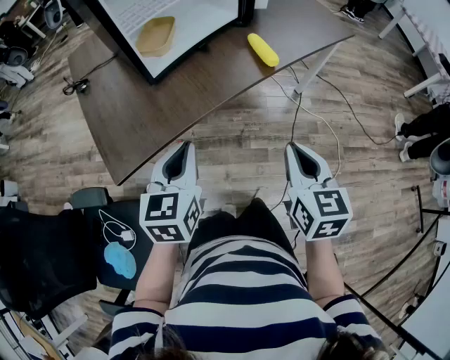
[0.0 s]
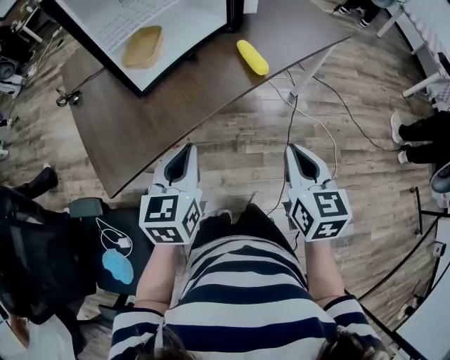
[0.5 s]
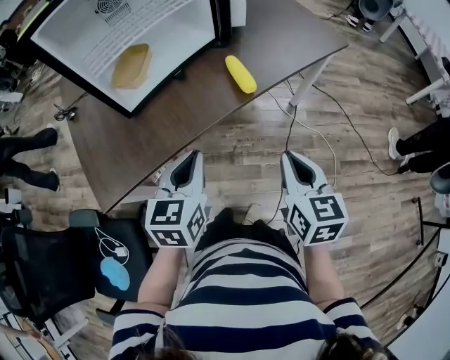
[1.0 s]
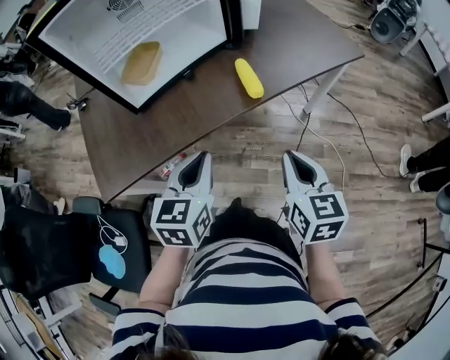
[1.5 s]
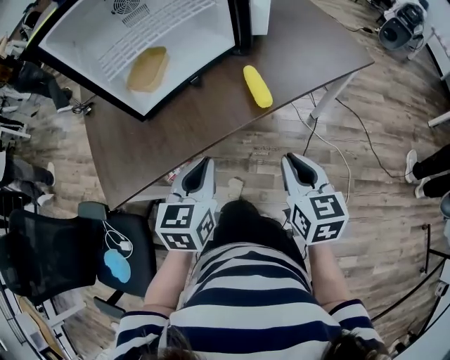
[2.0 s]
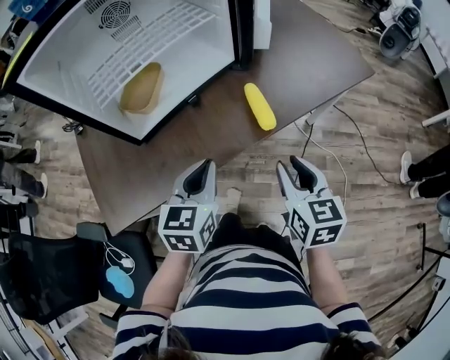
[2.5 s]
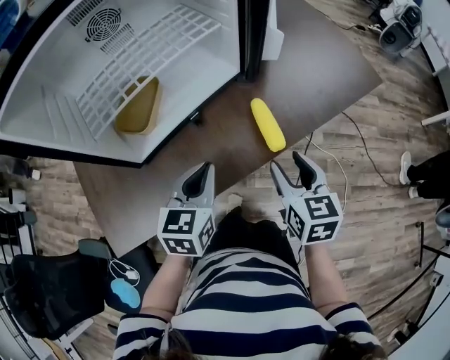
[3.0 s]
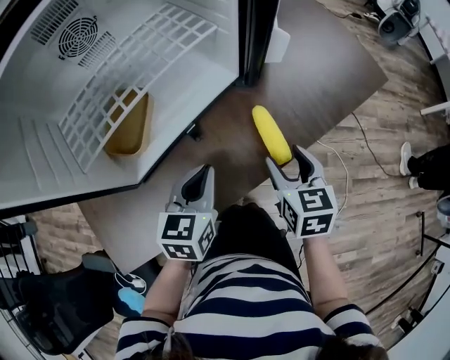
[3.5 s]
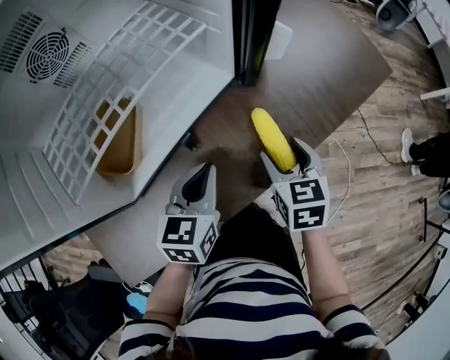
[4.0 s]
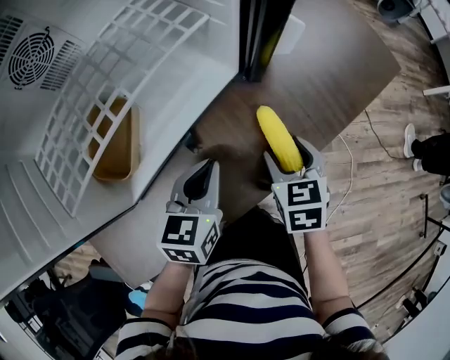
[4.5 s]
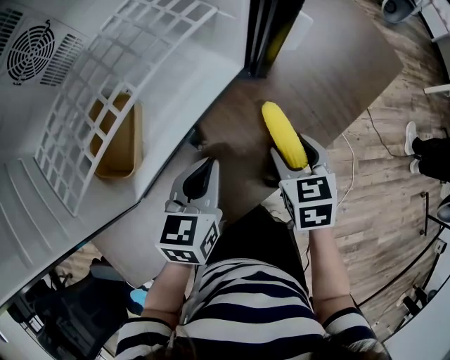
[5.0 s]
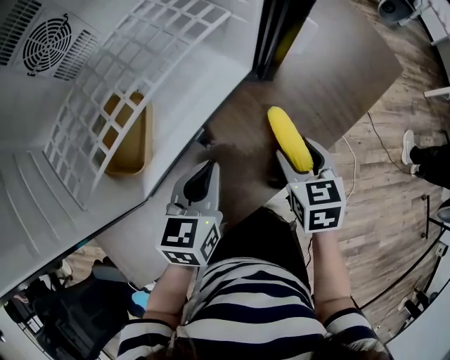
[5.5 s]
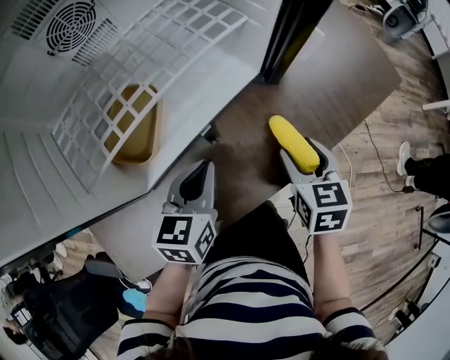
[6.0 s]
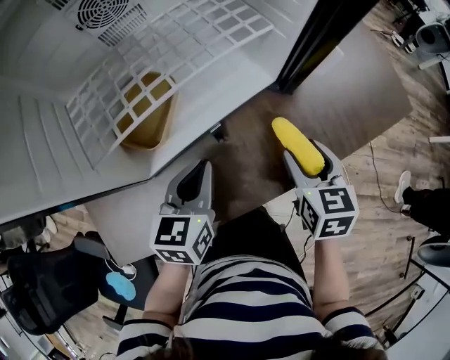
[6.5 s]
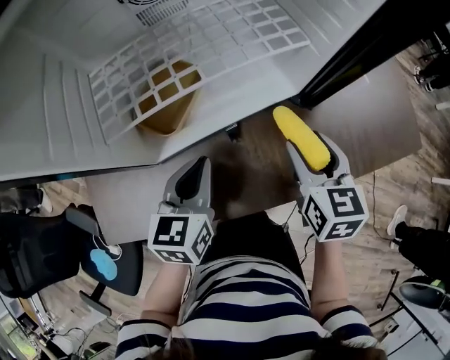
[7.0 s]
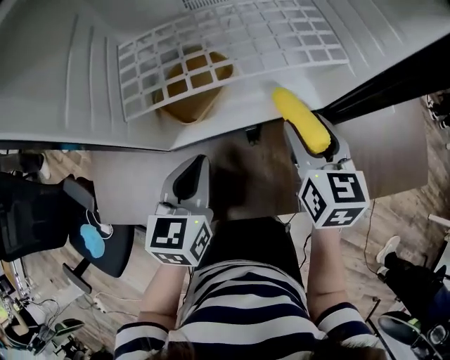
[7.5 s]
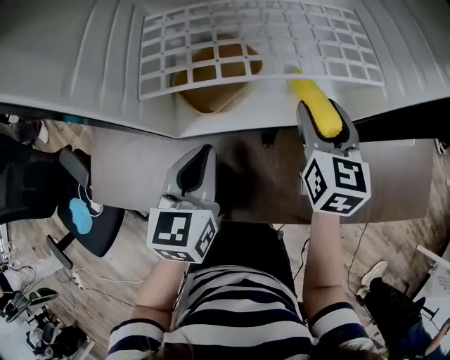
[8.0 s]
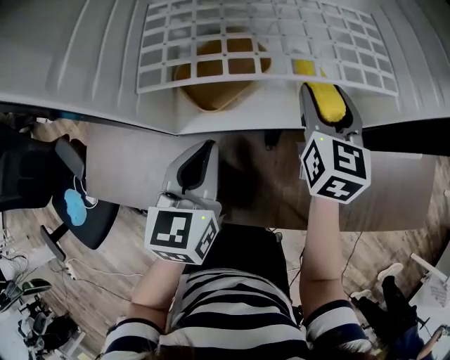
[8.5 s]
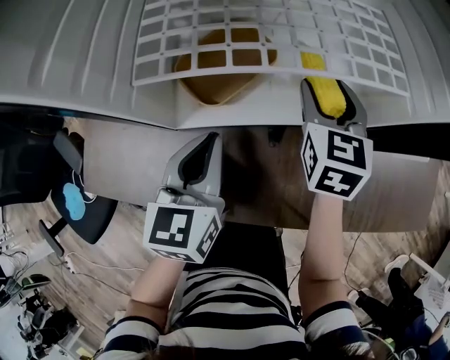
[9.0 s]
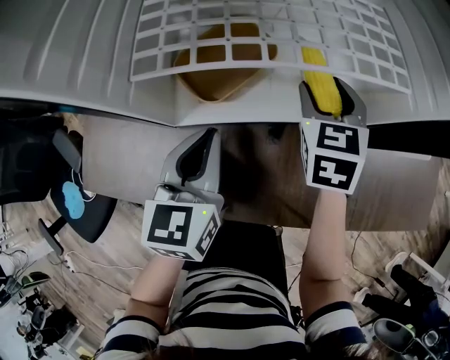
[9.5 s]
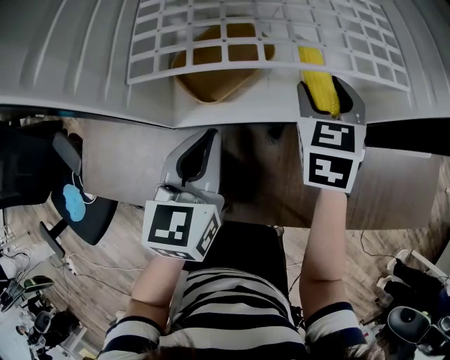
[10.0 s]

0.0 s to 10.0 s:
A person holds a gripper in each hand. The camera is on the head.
0.0 to 2.0 s: The left gripper heads to the right and forward, covering approximately 15 cm. The right gripper heads forward and to the right, covering approximately 15 cm.
2.0 to 4.0 s: Both grippers move forward, approximately 25 cm. The right gripper opens its fingers.
4.0 to 6.0 s: The left gripper changes place by roughly 5 cm.
6.0 to 8.0 s: The left gripper moves about 10 cm, and swivels roughly 40 degrees. The right gripper moves some 20 cm, and rotates roughly 30 degrees.
8.0 to 10.0 s: The right gripper shifts by some 5 cm, and turns by some 20 degrees.

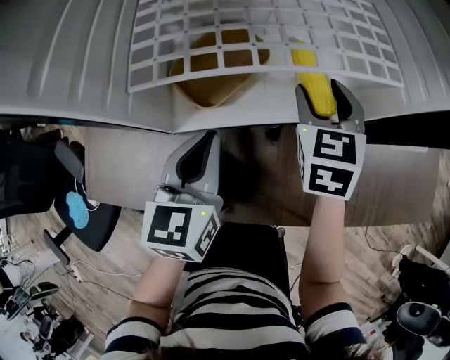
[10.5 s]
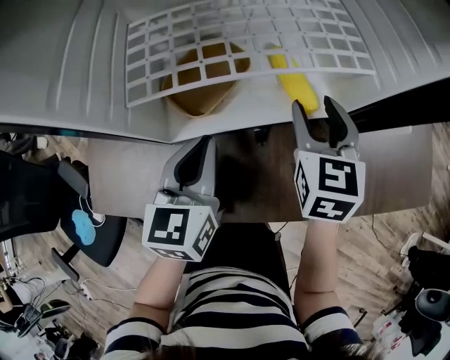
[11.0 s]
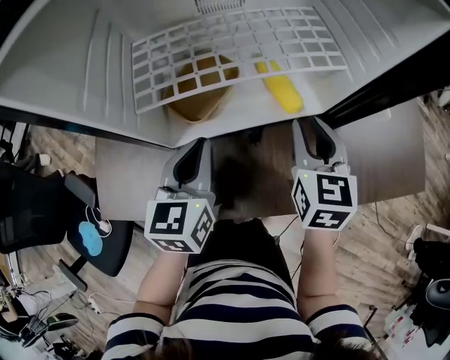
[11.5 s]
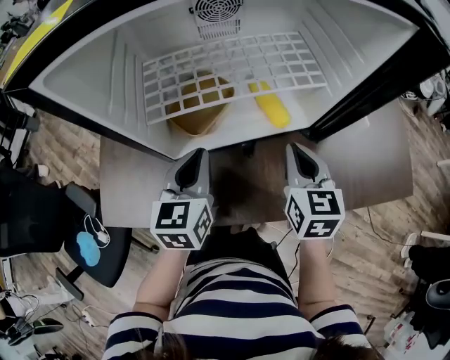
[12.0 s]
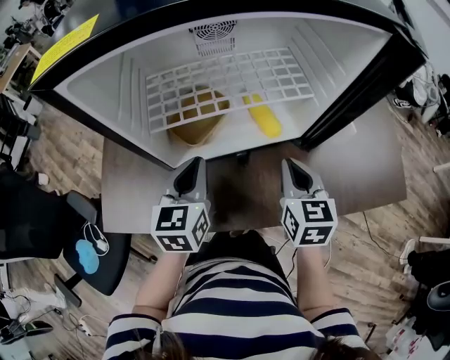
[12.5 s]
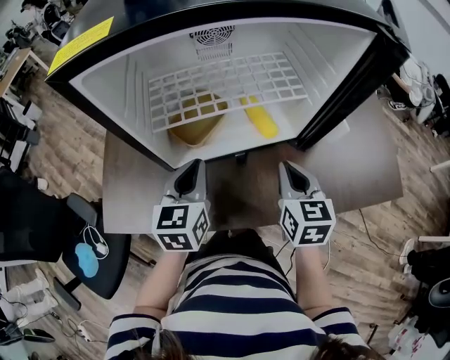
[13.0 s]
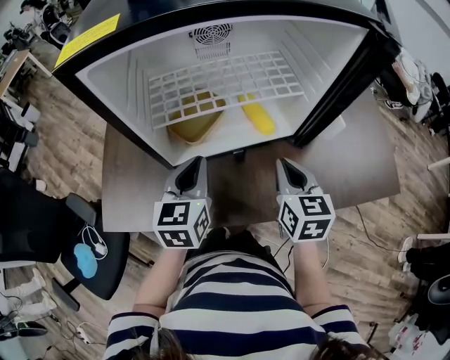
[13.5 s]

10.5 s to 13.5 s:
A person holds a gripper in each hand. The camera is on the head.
10.5 to 12.0 s: The right gripper is displaced backward and upward by about 15 cm, swivels about 20 degrees, and closes. Meanwhile the left gripper is displaced upward by some 5 cm.
12.0 to 13.5 s: The grippers move only a little.

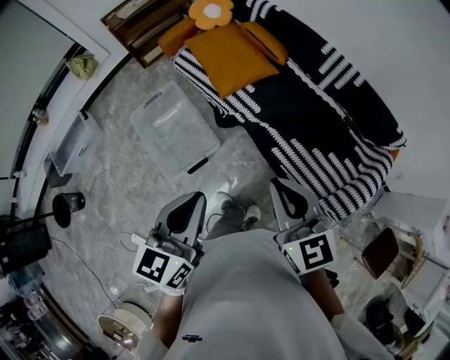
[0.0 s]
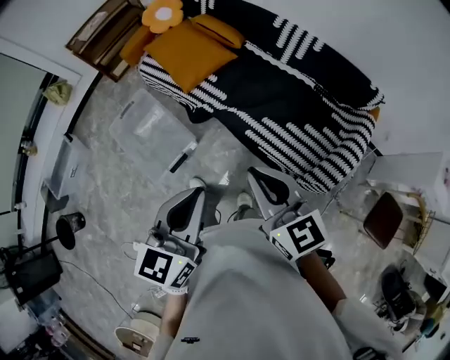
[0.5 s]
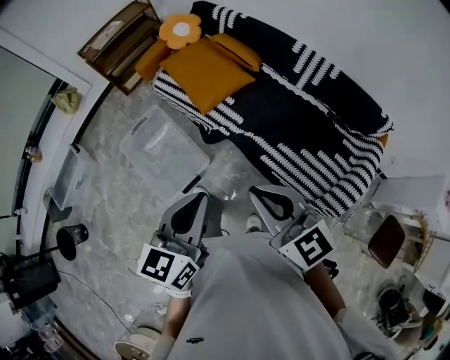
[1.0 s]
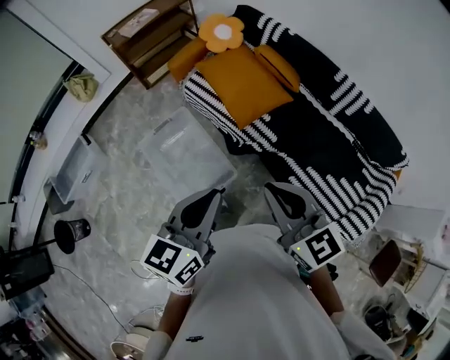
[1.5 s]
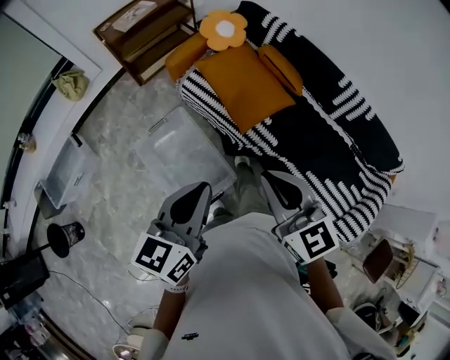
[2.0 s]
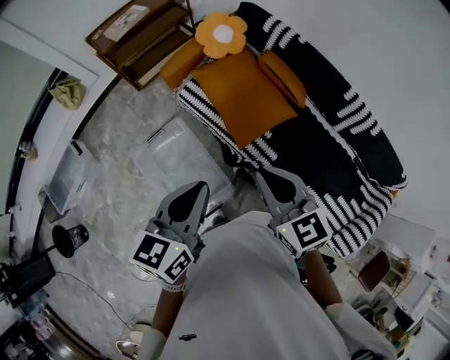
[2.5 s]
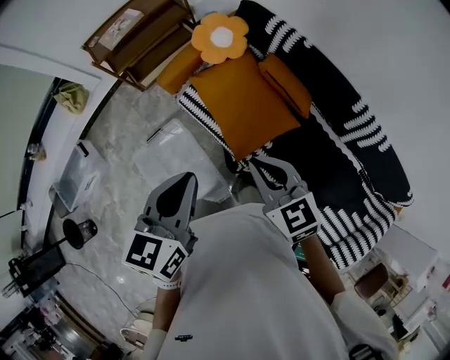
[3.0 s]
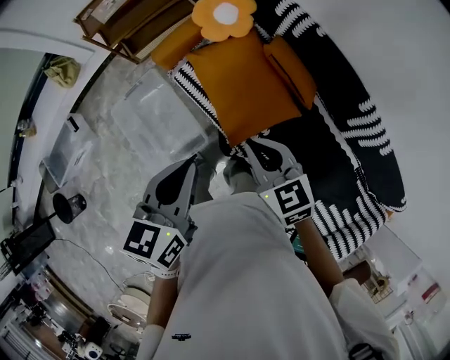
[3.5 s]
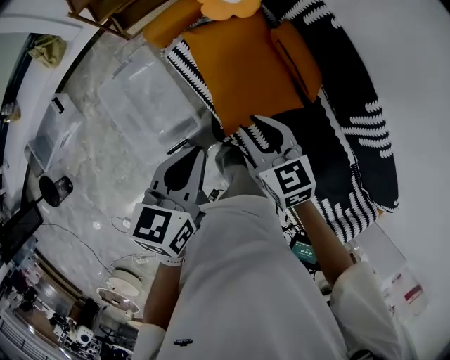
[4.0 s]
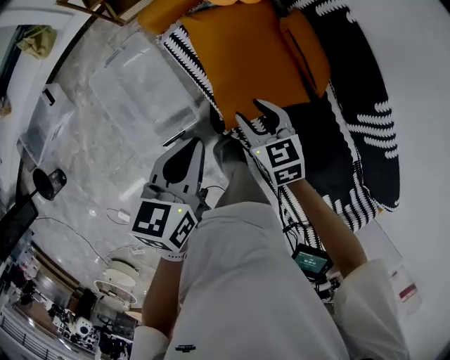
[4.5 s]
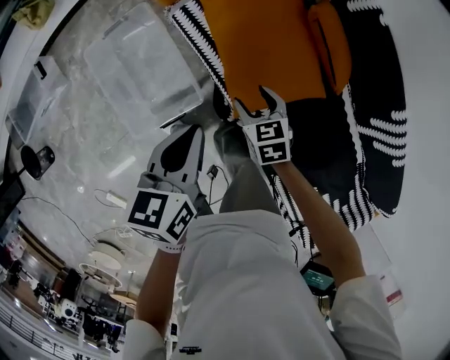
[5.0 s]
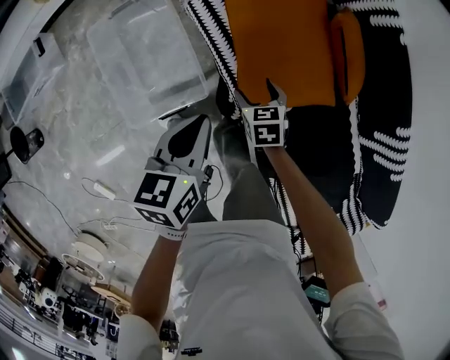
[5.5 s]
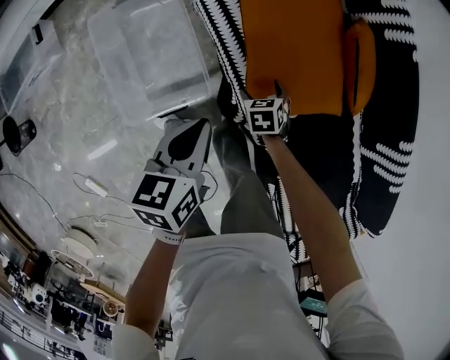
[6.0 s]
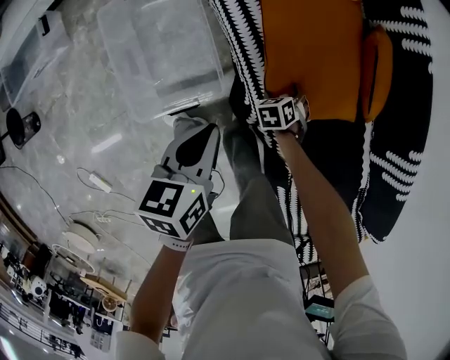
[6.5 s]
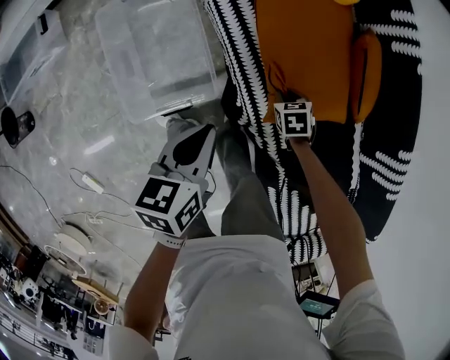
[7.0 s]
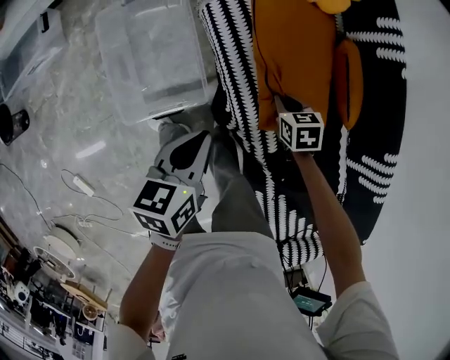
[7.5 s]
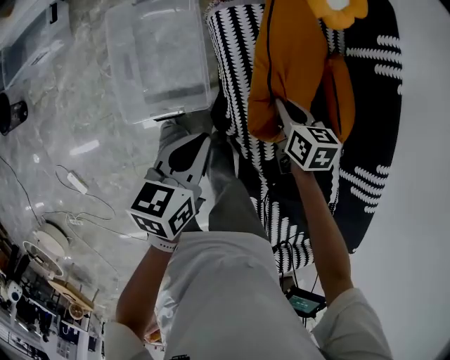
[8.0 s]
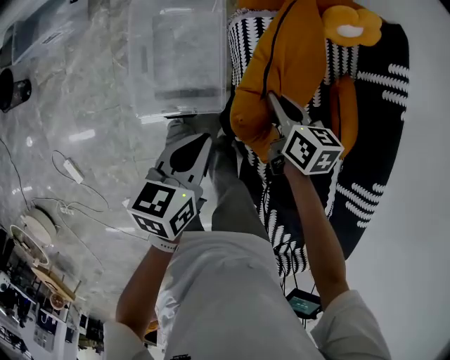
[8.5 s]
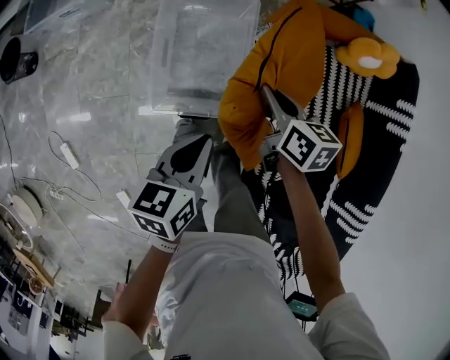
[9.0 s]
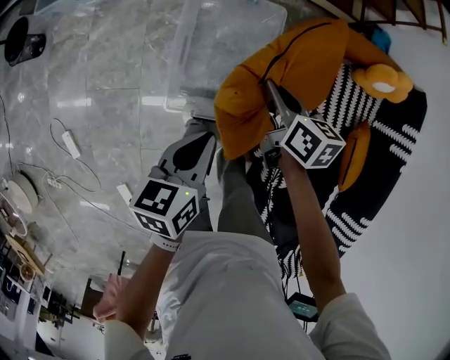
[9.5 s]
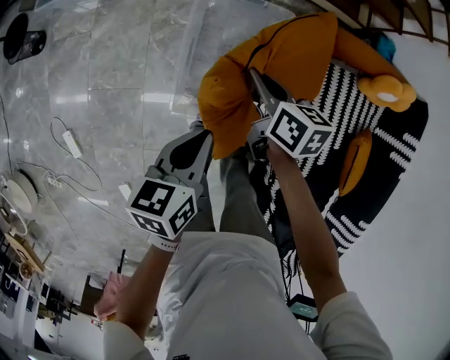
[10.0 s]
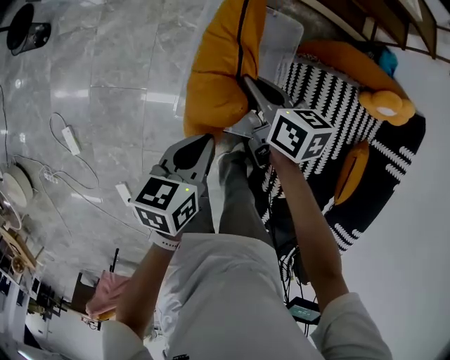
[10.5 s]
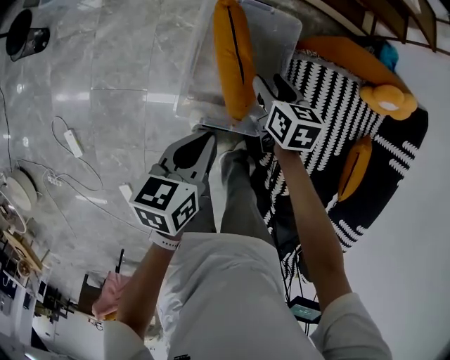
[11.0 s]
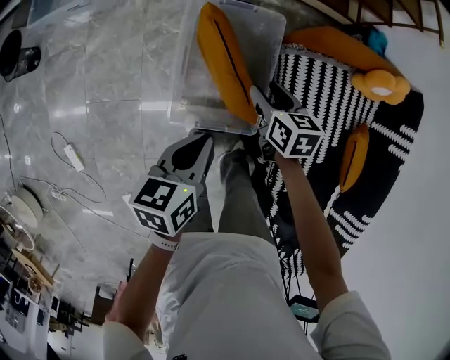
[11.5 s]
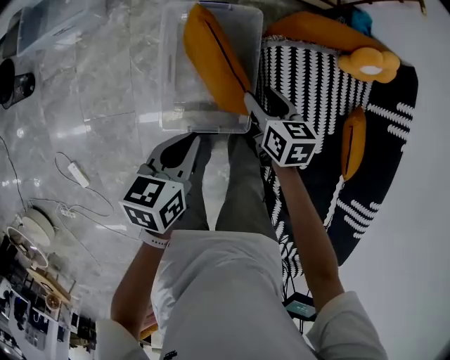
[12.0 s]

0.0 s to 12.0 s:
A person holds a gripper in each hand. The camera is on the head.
0.0 to 2.0 s: Both grippers move forward and to the left, some 30 cm.
2.0 to 4.0 s: The left gripper is displaced forward, downward and to the right by about 35 cm, and turns by approximately 20 degrees; the right gripper is displaced forward and downward by some 40 cm, and changes its angle by about 20 degrees.
4.0 to 6.0 s: The left gripper heads downward and to the left, covering about 25 cm, and turns by approximately 20 degrees. The right gripper travels downward by some 40 cm, tilts its fingers about 40 degrees downward, and opens up.
6.0 to 8.0 s: The left gripper moves some 5 cm, while the right gripper travels upward by approximately 20 cm, swivels about 20 degrees, and closes up.
8.0 to 10.0 s: The two grippers go approximately 35 cm to the left. The right gripper turns by some 20 degrees. Meanwhile the left gripper rotates approximately 20 degrees.
10.0 to 12.0 s: The right gripper heads to the right, covering roughly 10 cm, and opens.

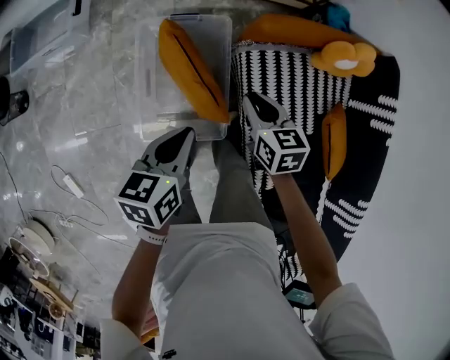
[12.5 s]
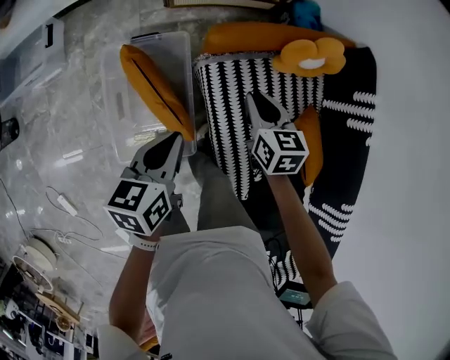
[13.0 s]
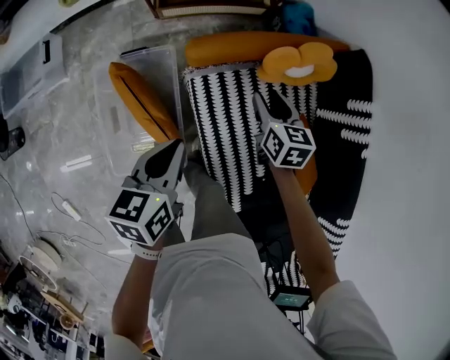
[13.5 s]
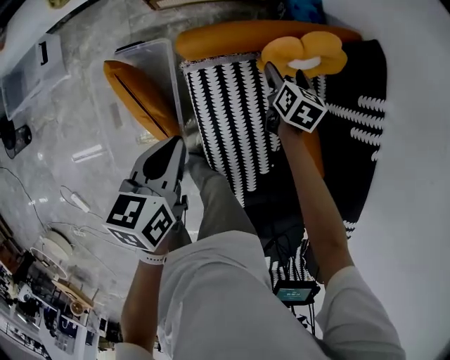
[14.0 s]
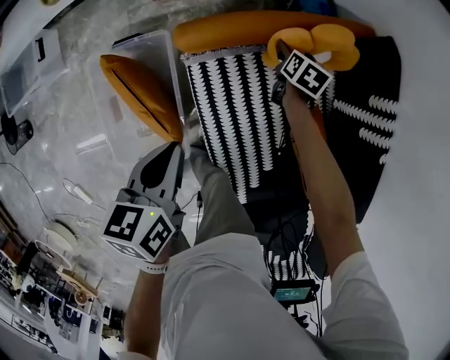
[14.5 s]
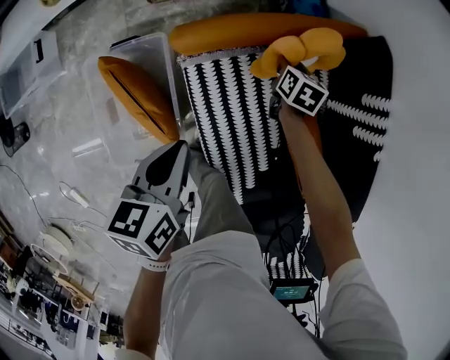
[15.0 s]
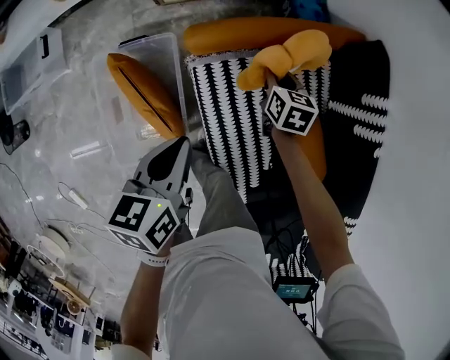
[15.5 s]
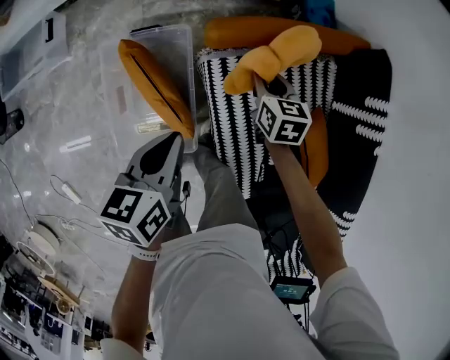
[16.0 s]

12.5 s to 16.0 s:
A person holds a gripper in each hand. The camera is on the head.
12.5 to 14.5 s: The left gripper heads to the right and forward, covering approximately 30 cm; the right gripper moves to the right, forward and downward, approximately 50 cm, turns by about 40 degrees, and opens its fingers.
14.5 to 16.0 s: The left gripper is displaced to the left and backward by roughly 10 cm. The right gripper heads to the left, backward and upward, covering approximately 25 cm, turns by about 30 degrees, and closes its fingers.
